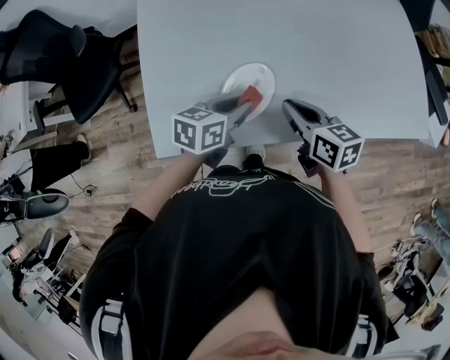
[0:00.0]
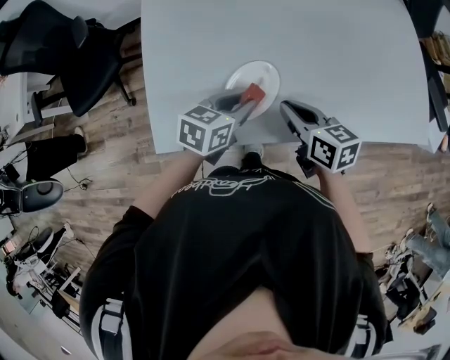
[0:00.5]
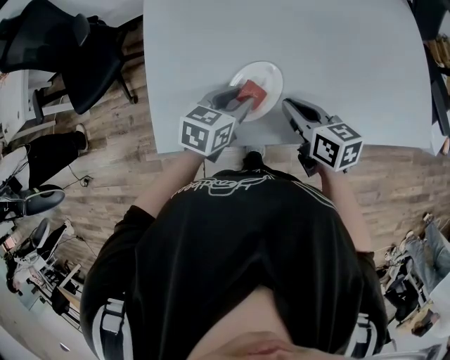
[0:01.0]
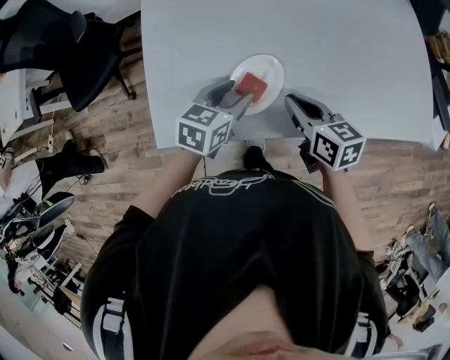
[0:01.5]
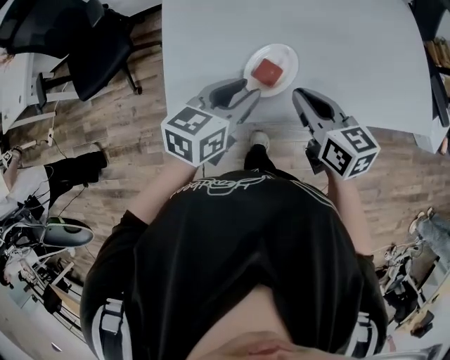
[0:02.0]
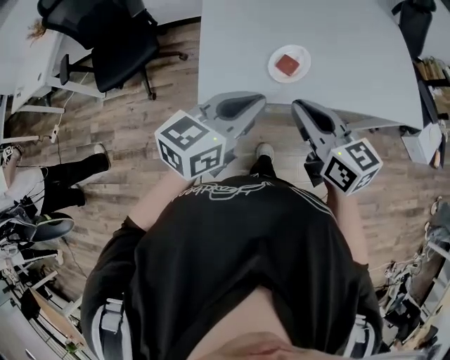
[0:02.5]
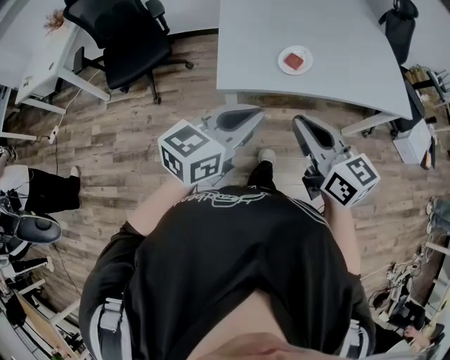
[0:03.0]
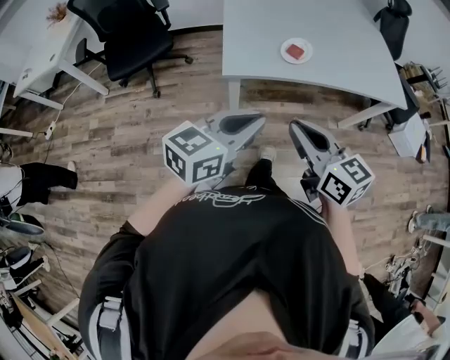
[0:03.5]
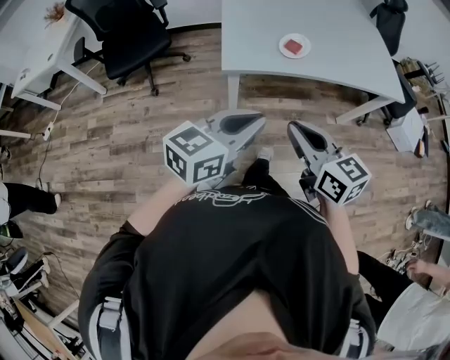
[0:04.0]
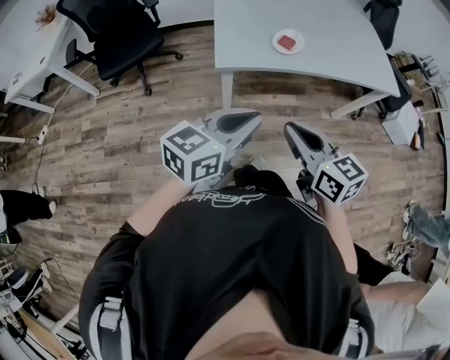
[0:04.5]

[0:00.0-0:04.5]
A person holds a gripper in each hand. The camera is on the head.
0:00.0 to 0:02.0: The right gripper shifts roughly 5 cm upward; the left gripper heads upward and backward, covering roughly 10 cm.
0:02.0 to 0:04.5: Both grippers are carried backward, about 40 cm. The left gripper swivels approximately 20 degrees, and closes up.

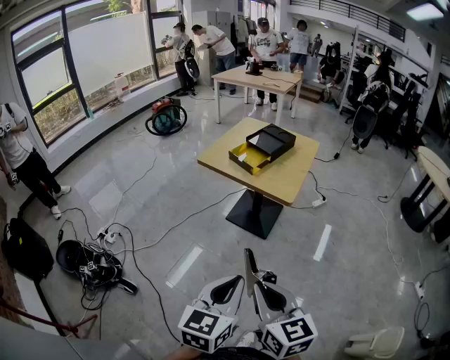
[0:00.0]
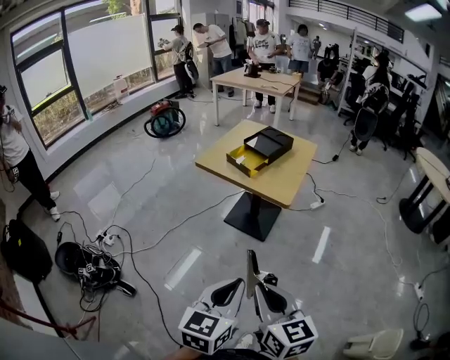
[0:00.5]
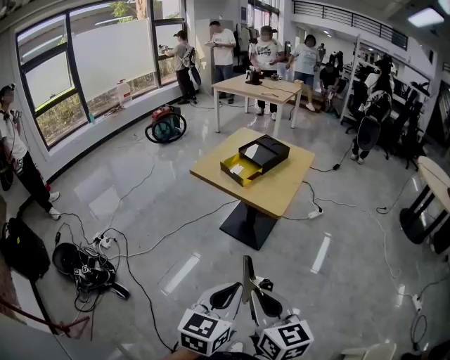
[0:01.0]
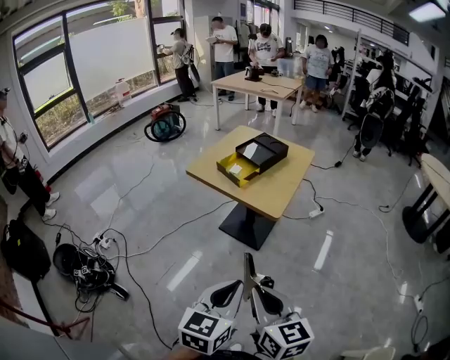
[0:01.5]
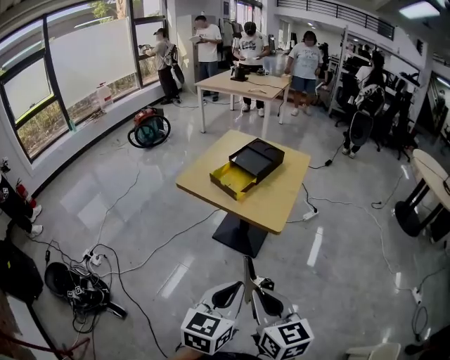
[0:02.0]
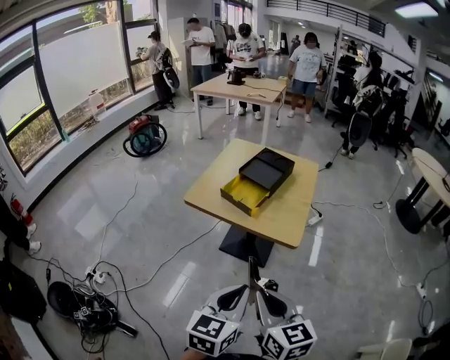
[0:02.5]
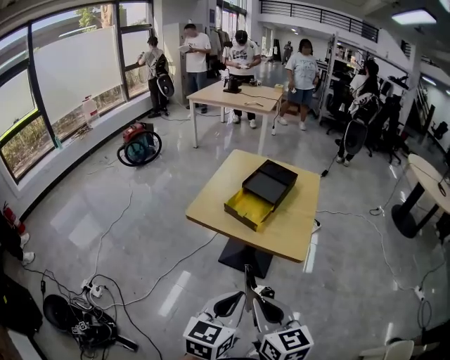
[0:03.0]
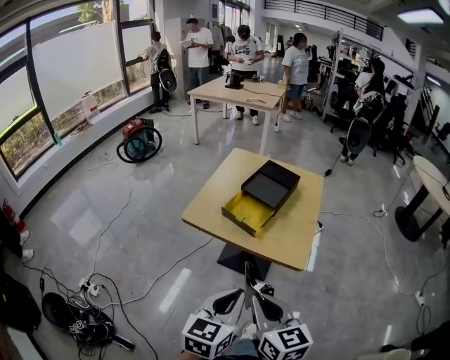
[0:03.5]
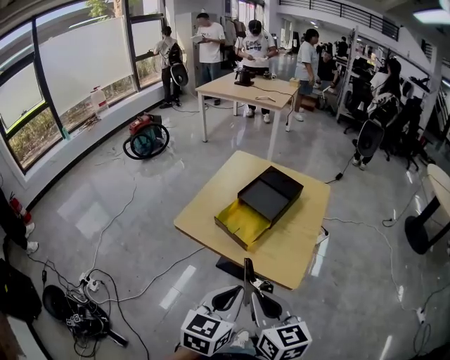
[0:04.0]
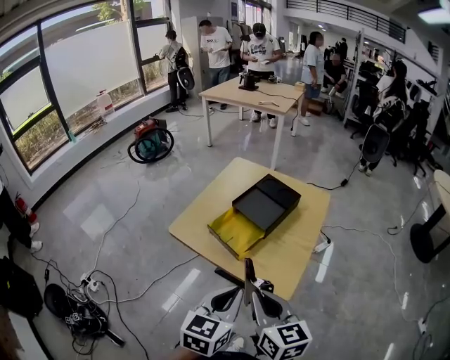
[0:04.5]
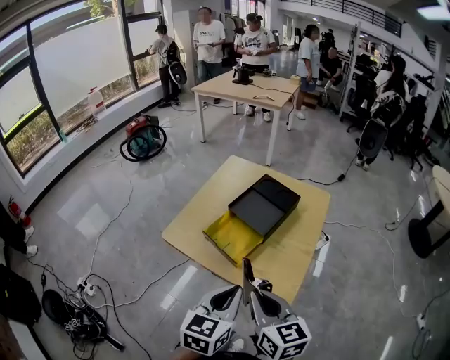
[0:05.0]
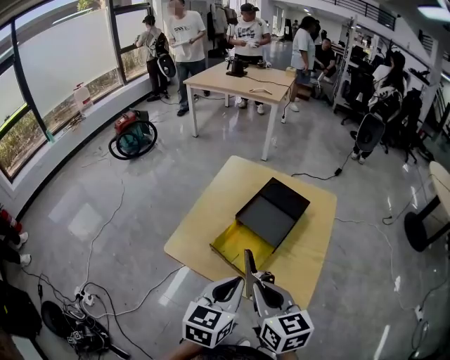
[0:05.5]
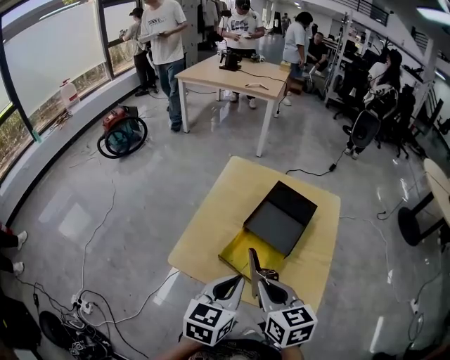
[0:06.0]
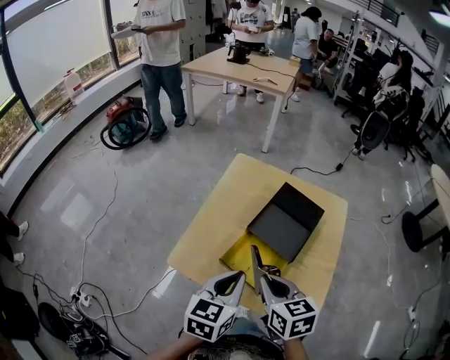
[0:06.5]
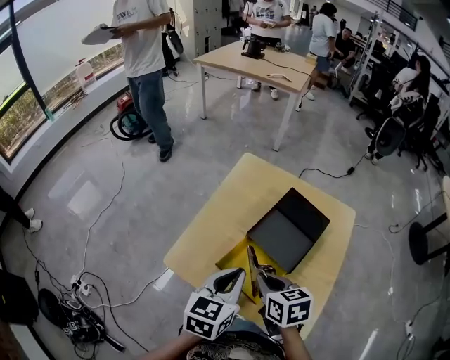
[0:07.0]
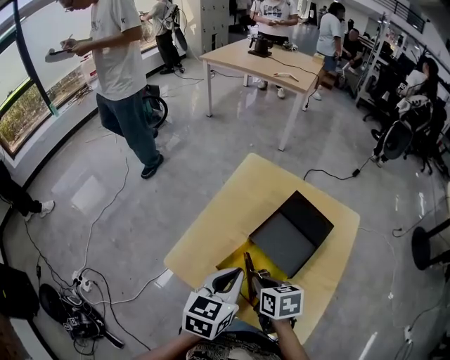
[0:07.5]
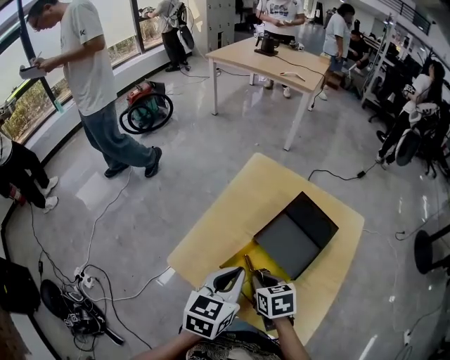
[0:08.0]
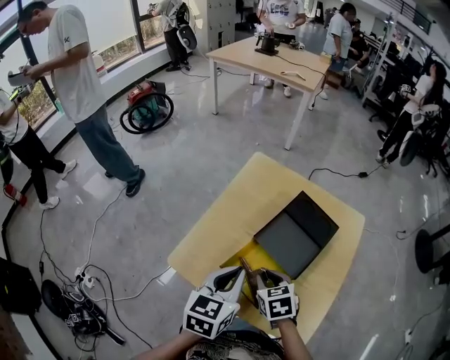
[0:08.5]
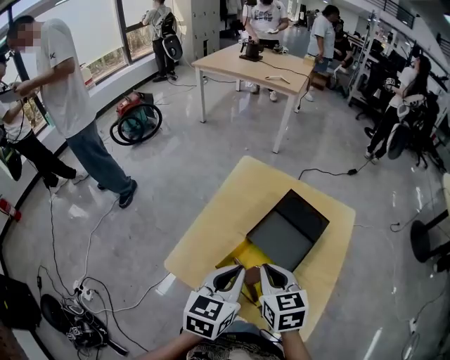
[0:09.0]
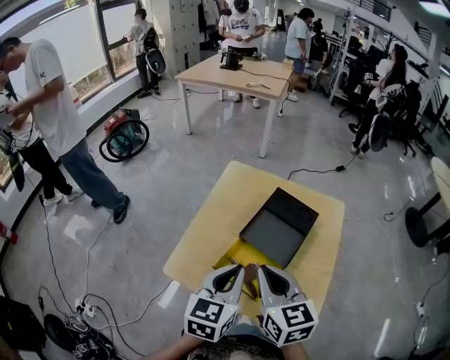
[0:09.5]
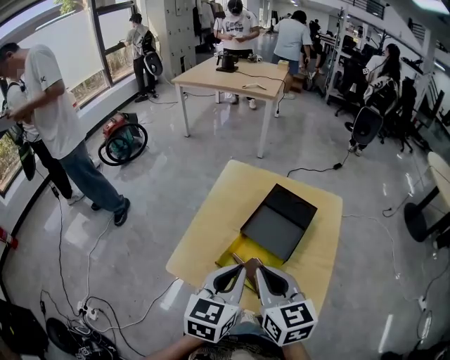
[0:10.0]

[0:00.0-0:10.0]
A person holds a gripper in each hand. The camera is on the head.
0:00.0 to 0:02.0: The grippers both shift forward by approximately 40 cm.
0:02.0 to 0:04.0: The two grippers travel together, forward, some 70 cm.
0:04.0 to 0:06.0: The two grippers travel together, forward, some 70 cm.
0:06.0 to 0:08.0: The right gripper shifts about 35 cm forward and downward, and changes its angle by some 30 degrees, while the left gripper moves forward, approximately 30 cm.
0:08.0 to 0:10.0: The right gripper travels backward and upward by roughly 35 cm, and angles its fingers upward, by some 30 degrees, while the left gripper shifts approximately 25 cm backward.

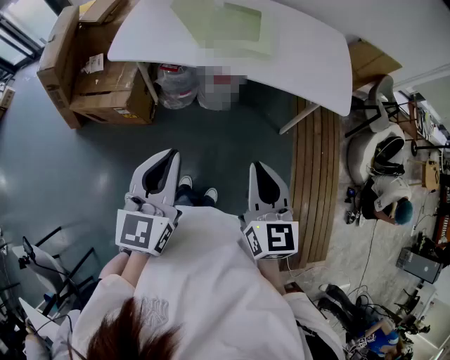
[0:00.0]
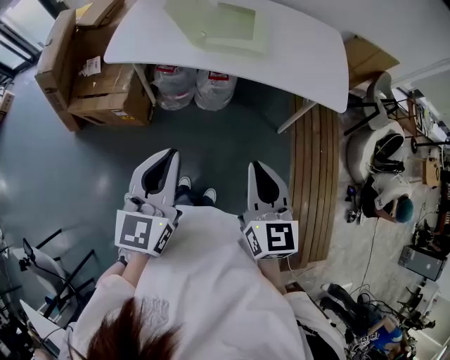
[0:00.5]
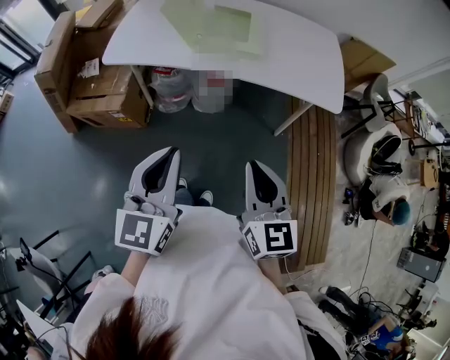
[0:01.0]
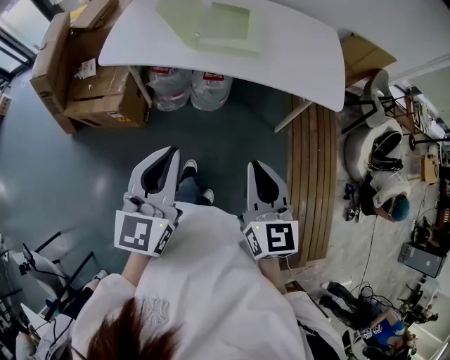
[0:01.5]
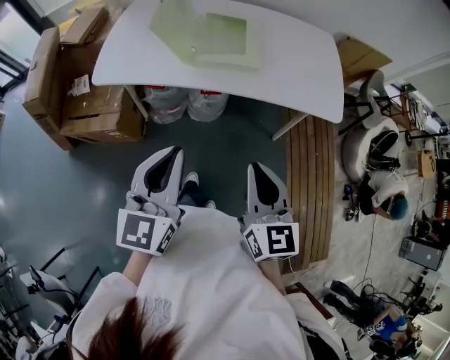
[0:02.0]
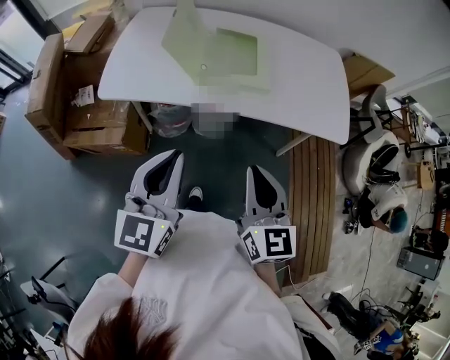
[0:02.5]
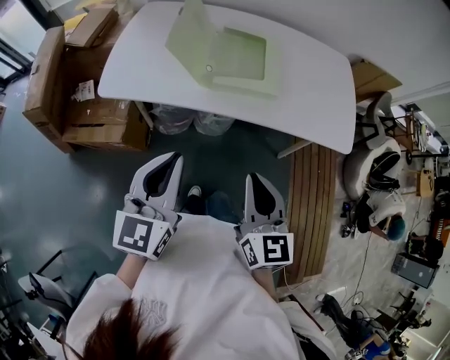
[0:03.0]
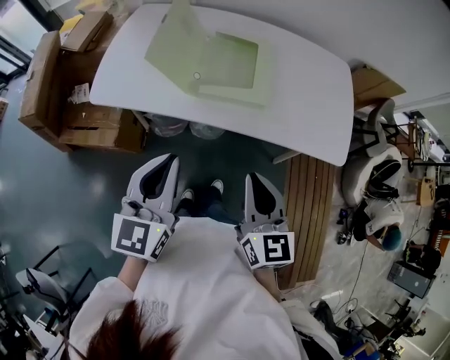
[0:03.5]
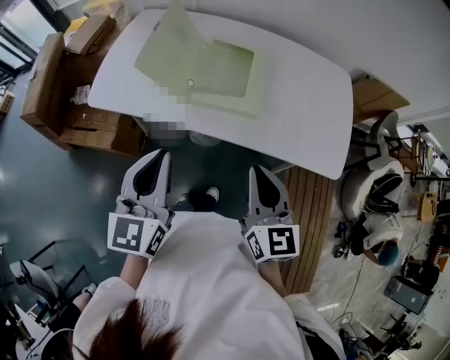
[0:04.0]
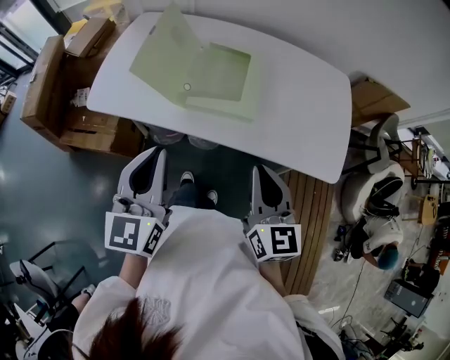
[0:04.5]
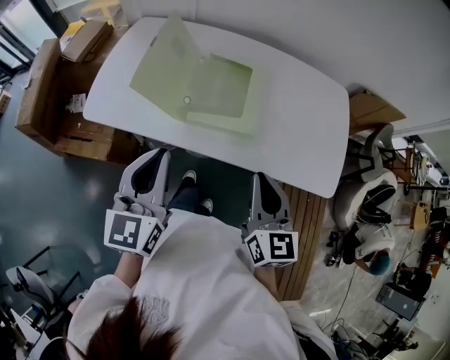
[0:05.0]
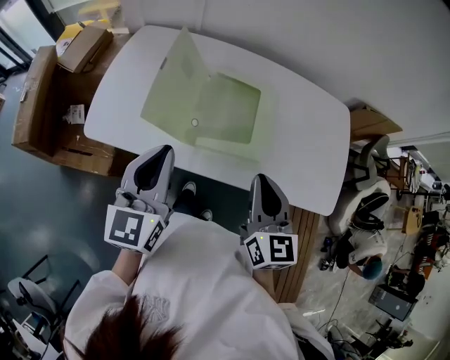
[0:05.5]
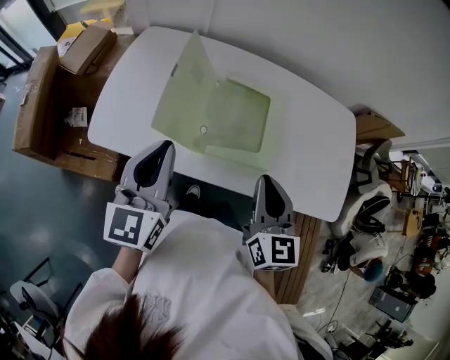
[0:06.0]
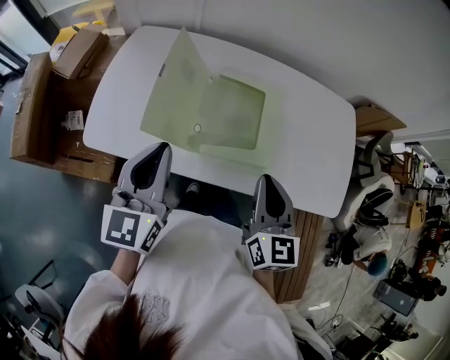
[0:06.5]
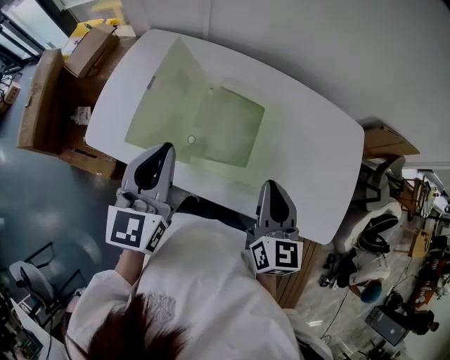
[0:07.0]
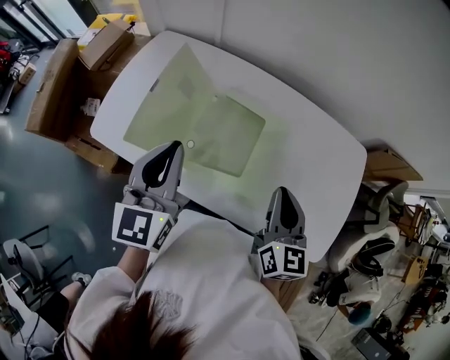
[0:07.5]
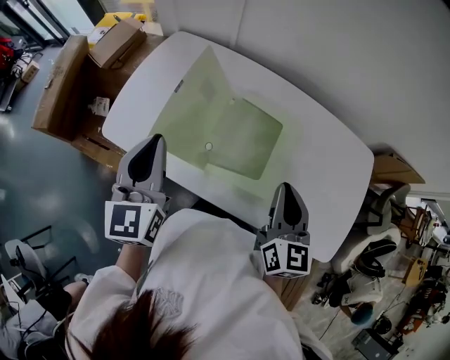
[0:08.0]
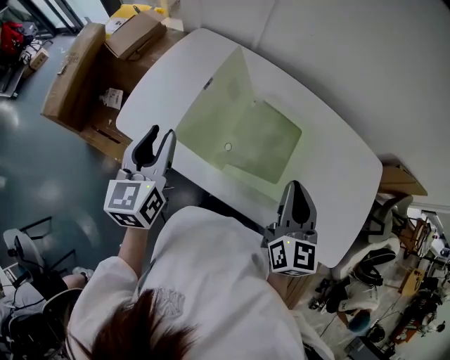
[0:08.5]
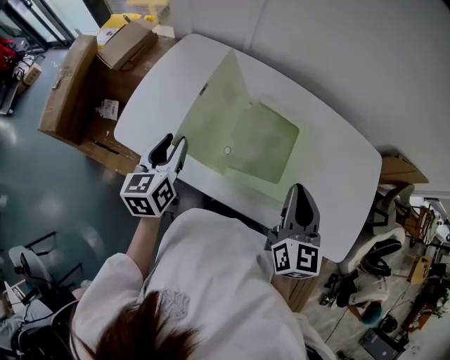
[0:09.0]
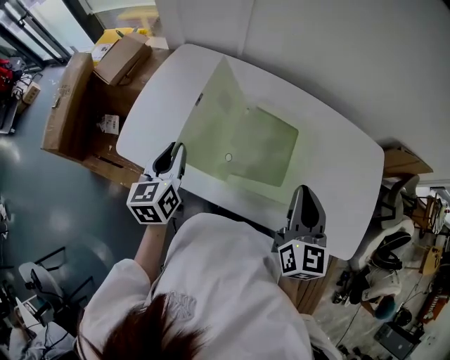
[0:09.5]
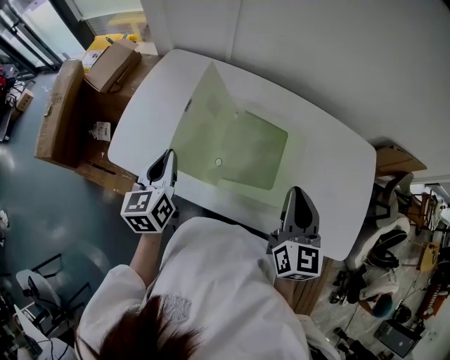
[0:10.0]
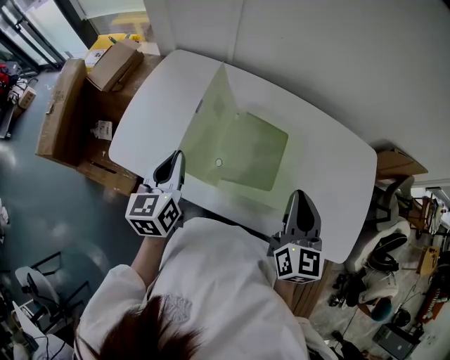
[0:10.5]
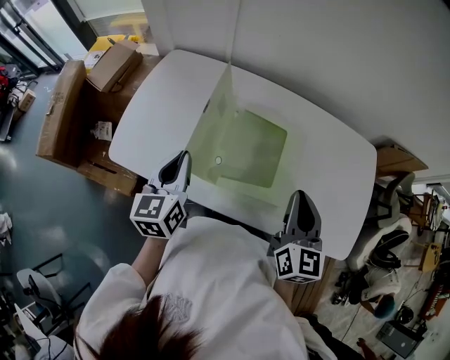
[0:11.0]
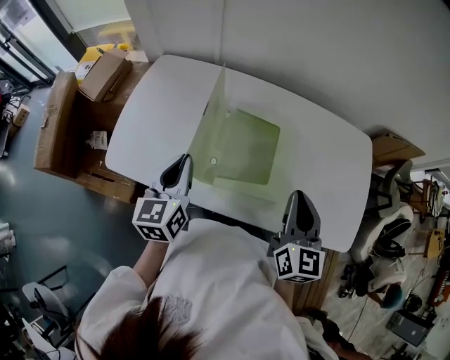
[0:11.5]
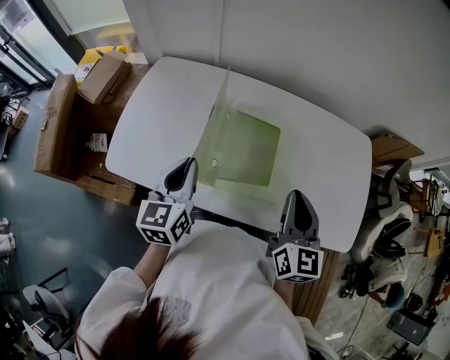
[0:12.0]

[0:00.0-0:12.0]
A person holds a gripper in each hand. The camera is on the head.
0:00.0 to 0:02.0: Both grippers travel together forward, about 10 cm.
0:02.0 to 0:04.0: The grippers both shift forward by roughly 15 cm.
0:04.0 to 0:06.0: The left gripper travels forward and to the left by some 20 cm; the right gripper goes roughly 15 cm forward.
0:06.0 to 0:08.0: The left gripper heads forward, covering roughly 5 cm, travels to the right and back again, about 10 cm each way, and changes its angle by roughly 20 degrees. The right gripper is displaced forward and to the right by about 10 cm.
0:08.0 to 0:10.0: The left gripper heads downward, covering approximately 10 cm, turns by roughly 20 degrees, and opens and closes again.
0:10.0 to 0:12.0: The left gripper heads to the right, covering some 10 cm.
